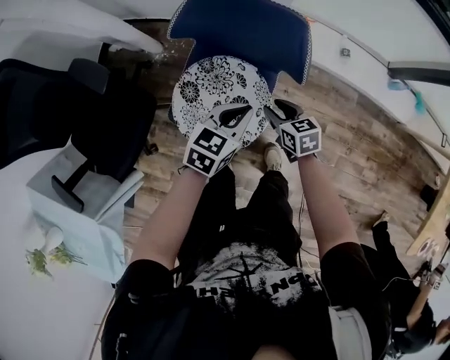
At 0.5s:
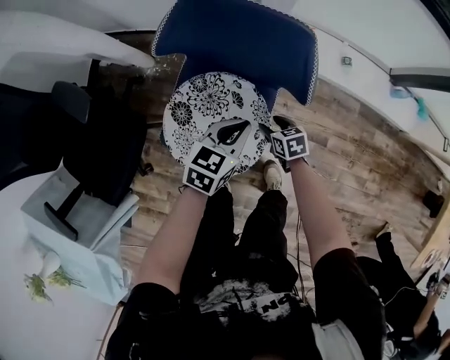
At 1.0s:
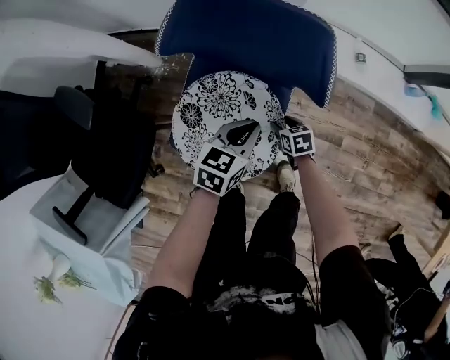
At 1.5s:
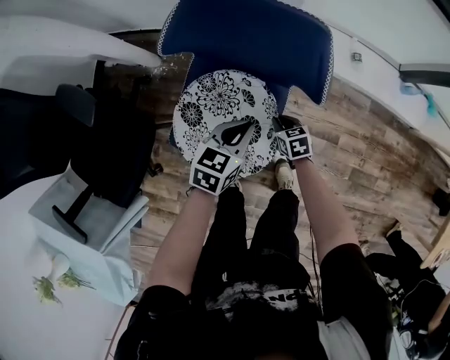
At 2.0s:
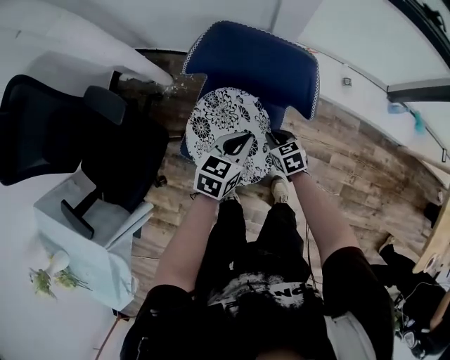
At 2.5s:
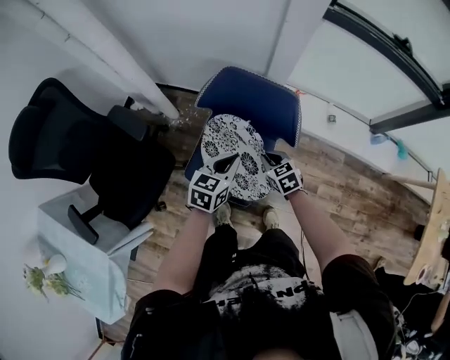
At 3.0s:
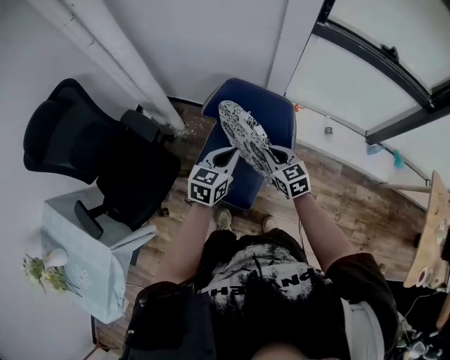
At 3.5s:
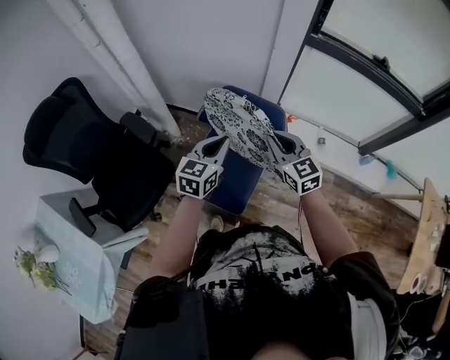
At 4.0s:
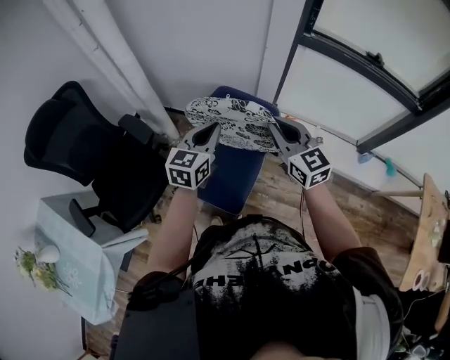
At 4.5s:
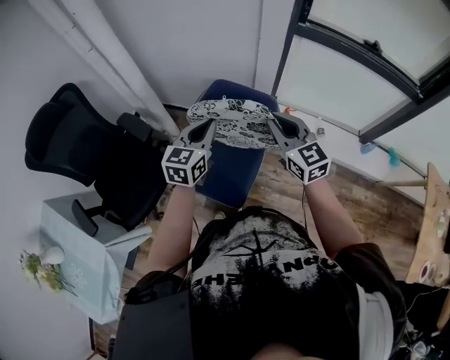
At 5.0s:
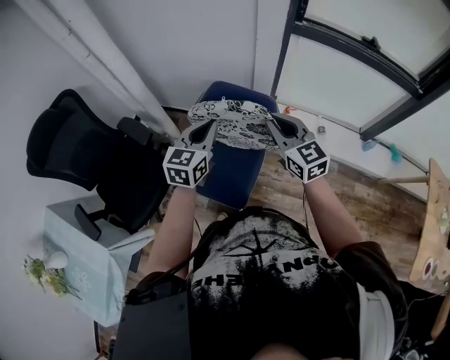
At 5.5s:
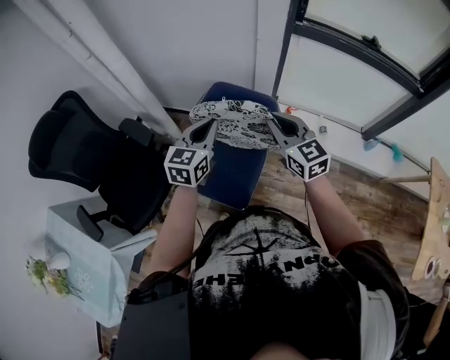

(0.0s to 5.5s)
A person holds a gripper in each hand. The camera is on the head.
0.0s - 2.0s: The left gripper reaches some 10 cm downward, then returns. The right gripper moves some 20 cm downward and comes back, and closes its fingers.
2.0s - 3.5s: The left gripper shifts roughly 20 cm upward, and changes its angle by roughly 20 degrees. Meanwhile the right gripper heads upward, covering approximately 40 cm, and points its fingers about 40 degrees further upward.
3.5s - 5.5s: The right gripper shifts roughly 5 cm upward.

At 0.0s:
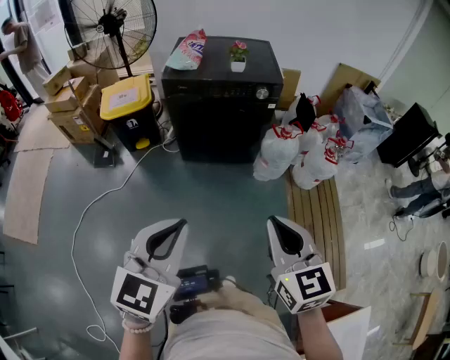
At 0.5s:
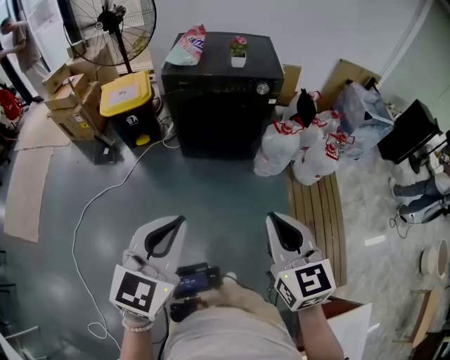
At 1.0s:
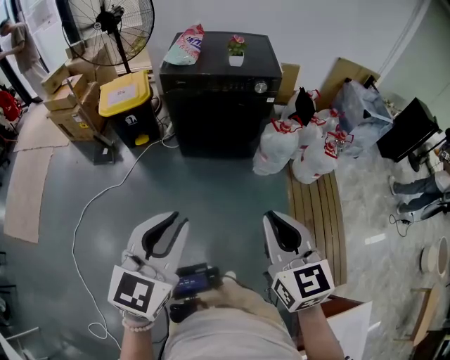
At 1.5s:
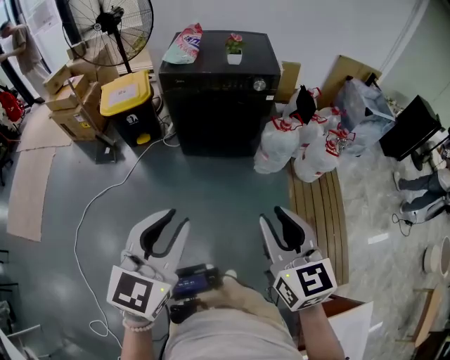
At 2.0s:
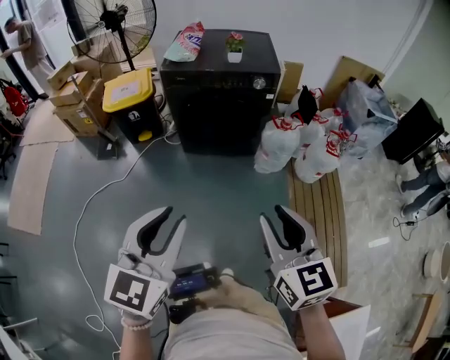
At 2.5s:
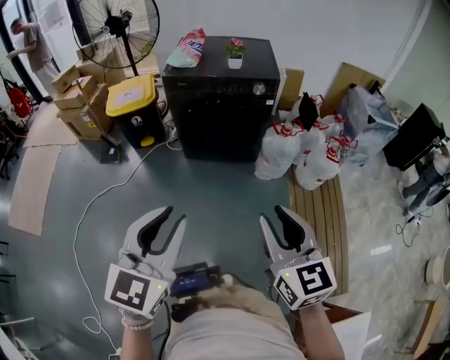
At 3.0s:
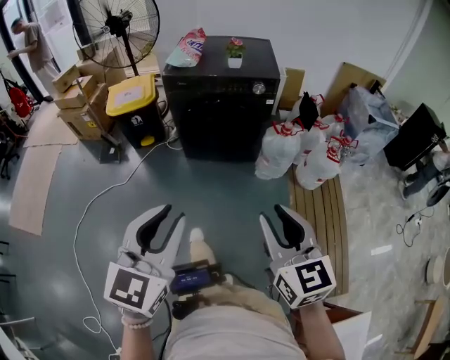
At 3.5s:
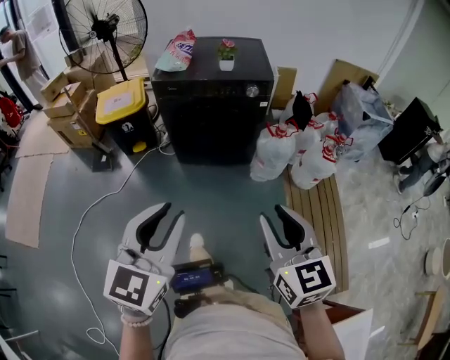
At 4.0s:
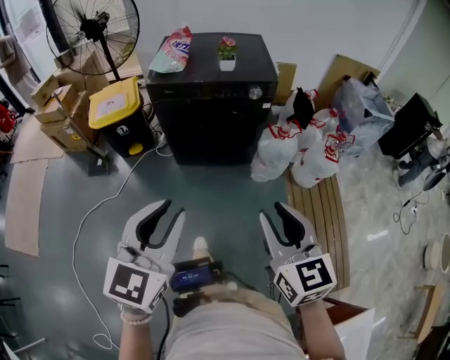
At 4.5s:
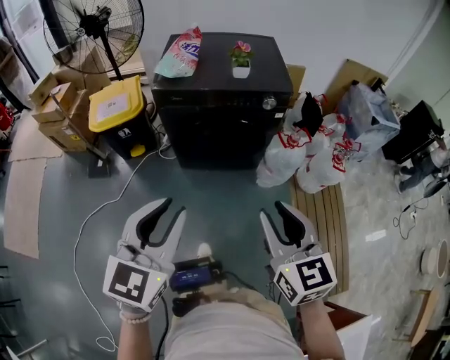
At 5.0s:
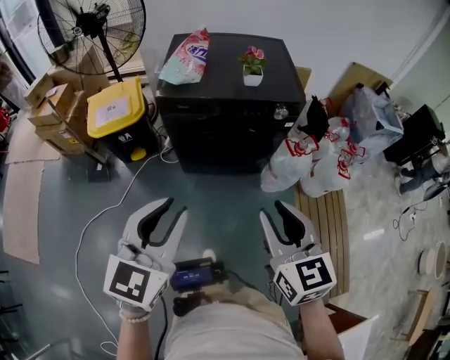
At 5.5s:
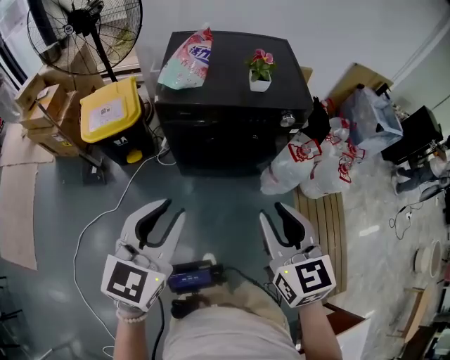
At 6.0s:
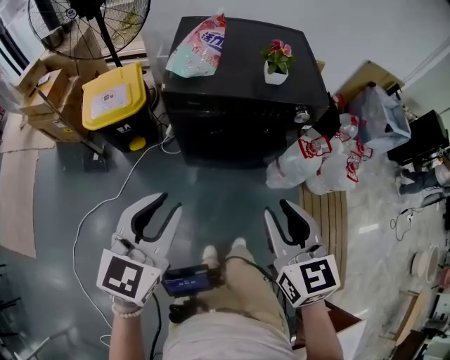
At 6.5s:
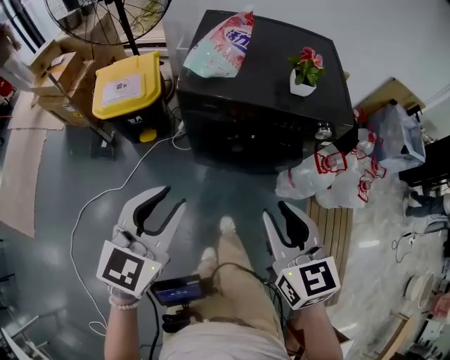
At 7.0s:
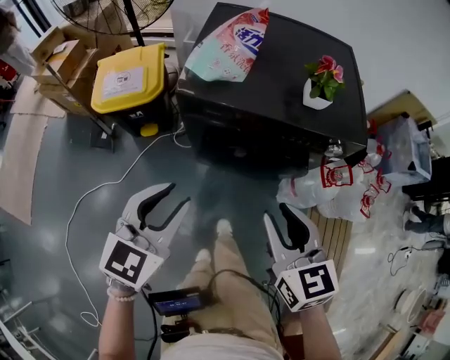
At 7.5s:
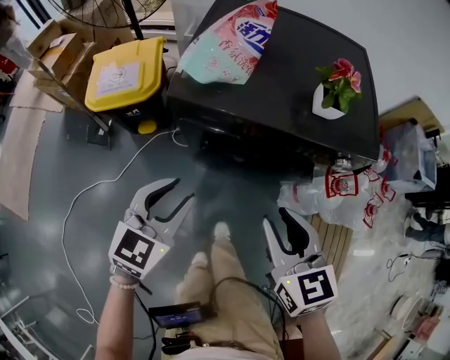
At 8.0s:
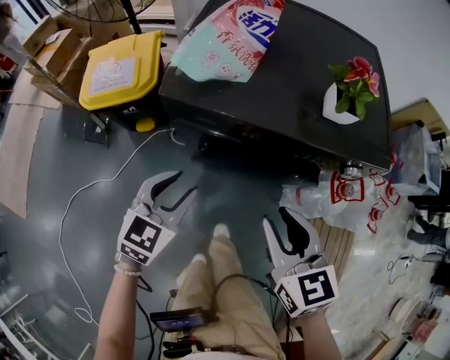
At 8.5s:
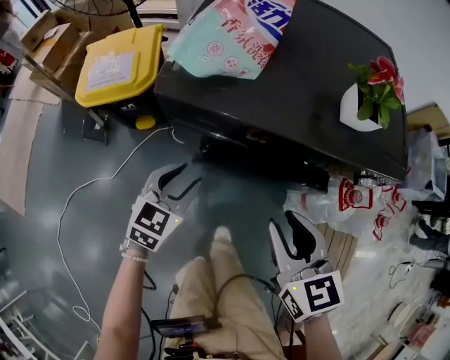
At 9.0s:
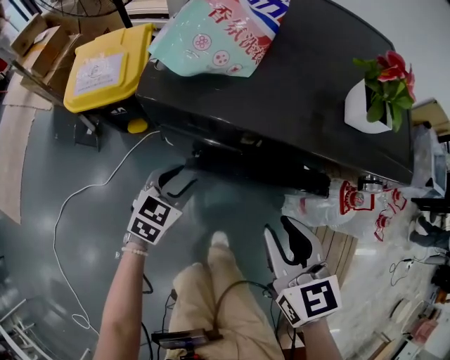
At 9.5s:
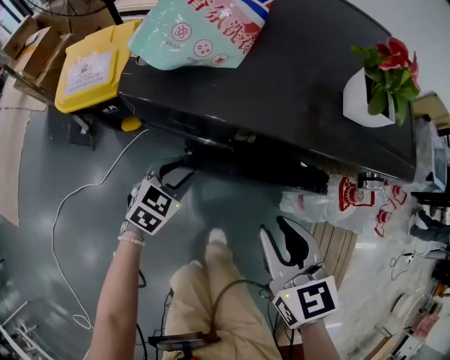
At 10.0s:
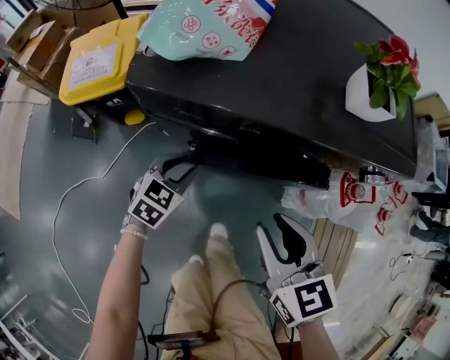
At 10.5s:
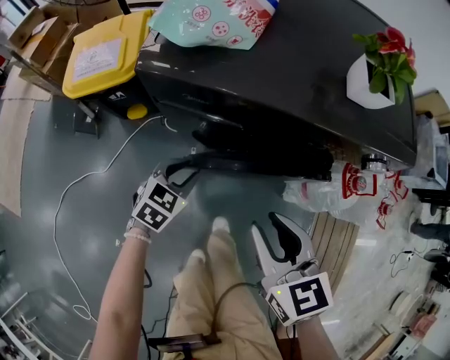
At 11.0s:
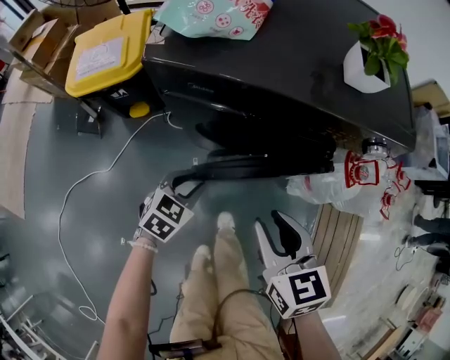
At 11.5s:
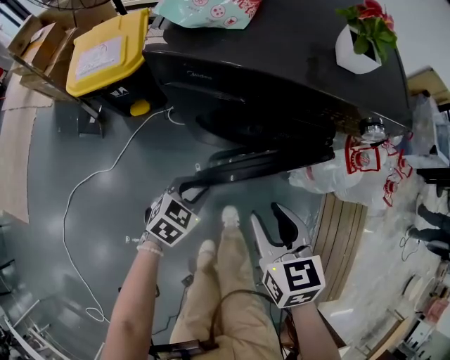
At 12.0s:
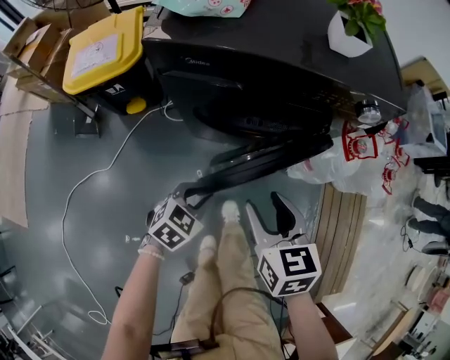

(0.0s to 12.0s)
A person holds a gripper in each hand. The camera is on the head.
0.0s - 2.0s: The left gripper opens. Meanwhile the right gripper opens.
2.0s - 4.0s: The grippers both shift forward by roughly 10 cm.
4.0s - 6.0s: Both grippers move forward and to the left, approximately 25 cm.
6.0s - 8.0s: The right gripper heads forward and downward, covering roughly 25 cm, while the left gripper is displaced downward and forward by approximately 30 cm.
8.0s - 10.0s: The left gripper goes approximately 20 cm downward. Meanwhile the right gripper goes approximately 10 cm downward.
10.0s - 12.0s: The right gripper shifts roughly 10 cm backward, and opens its fingers. Meanwhile the left gripper travels backward by approximately 20 cm.

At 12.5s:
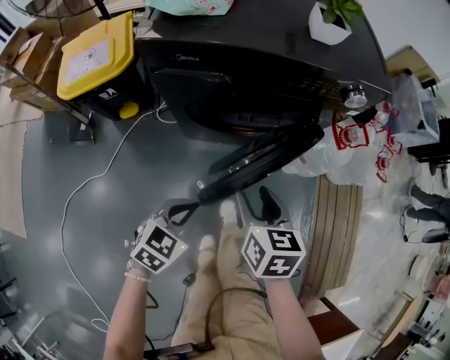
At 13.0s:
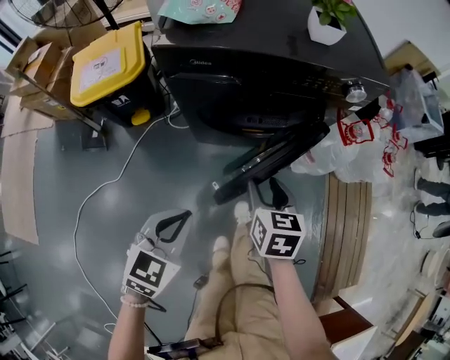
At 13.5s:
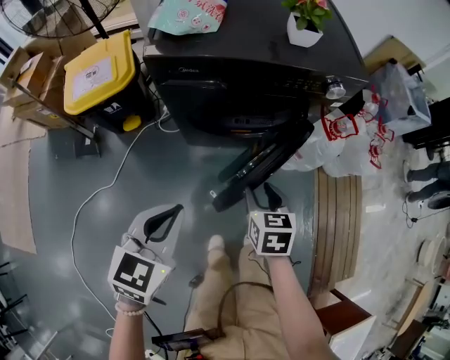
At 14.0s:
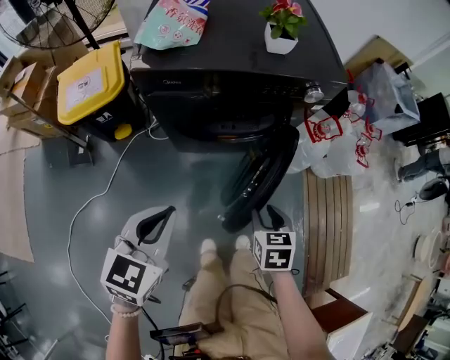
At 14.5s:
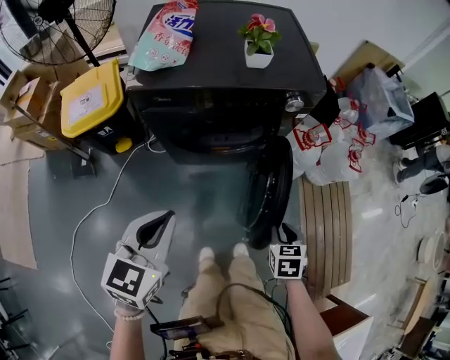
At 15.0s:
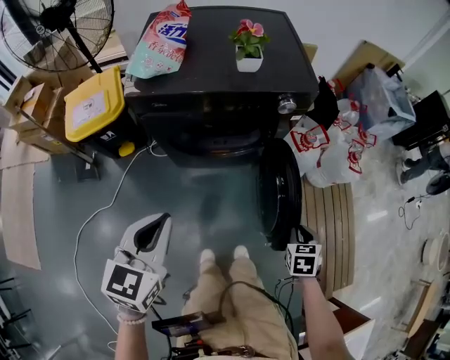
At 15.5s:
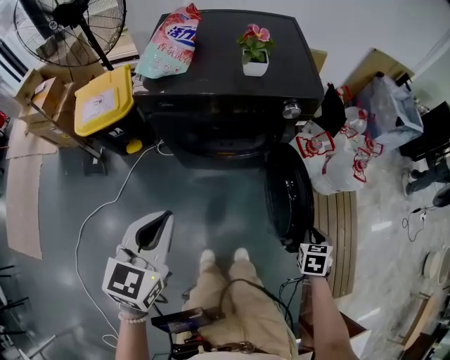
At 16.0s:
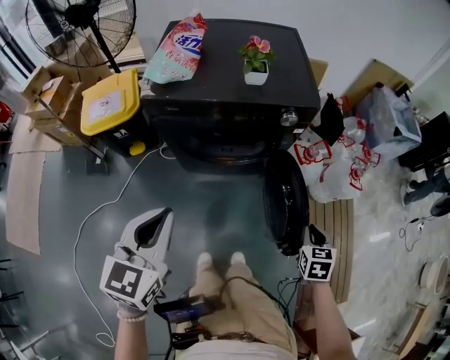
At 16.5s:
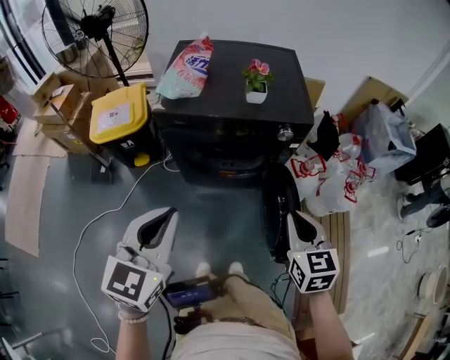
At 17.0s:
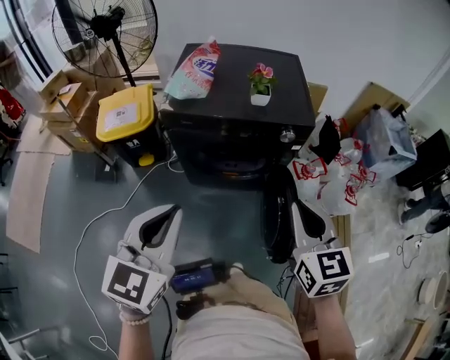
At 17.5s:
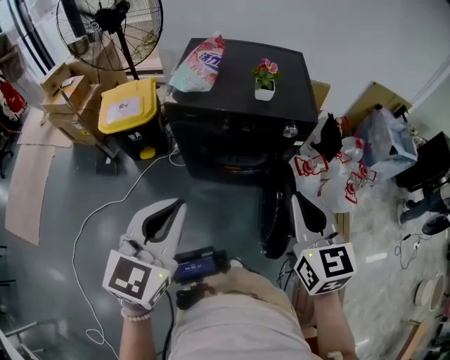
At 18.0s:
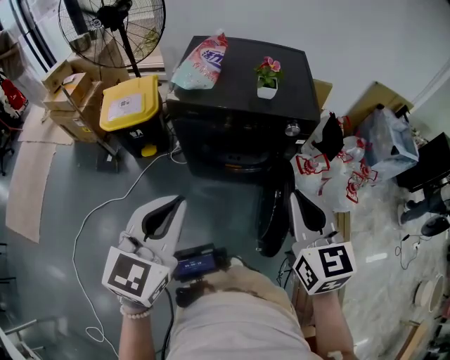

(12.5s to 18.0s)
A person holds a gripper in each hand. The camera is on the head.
12.5s - 14.5s: The left gripper goes about 25 cm upward, and rotates about 20 degrees. The right gripper travels to the right by some 20 cm, turns by approximately 30 degrees, and closes.
14.5s - 16.0s: The right gripper is displaced to the right, upward and forward by some 15 cm, while the left gripper shifts approximately 10 cm upward.
16.0s - 18.0s: The right gripper moves upward and to the left, about 35 cm, and tilts its fingers about 30 degrees upward; the left gripper heads upward, covering about 10 cm.

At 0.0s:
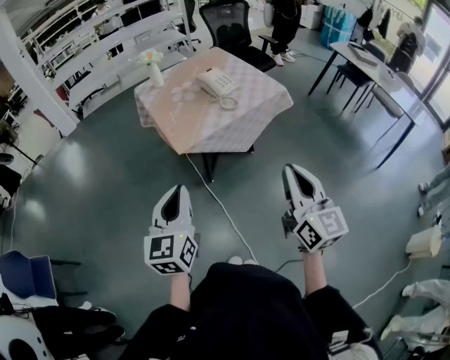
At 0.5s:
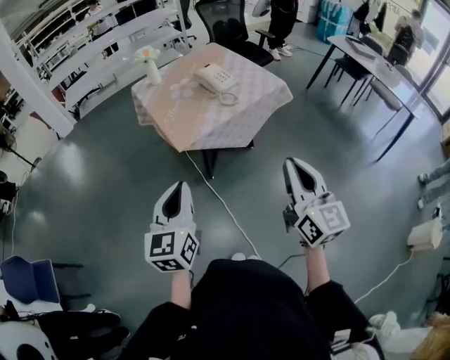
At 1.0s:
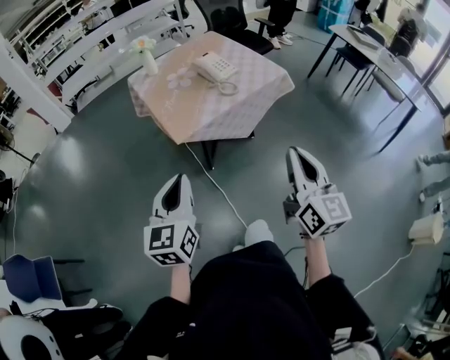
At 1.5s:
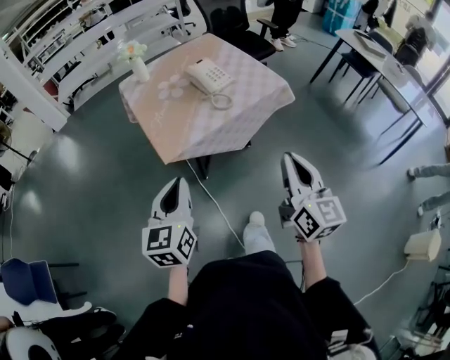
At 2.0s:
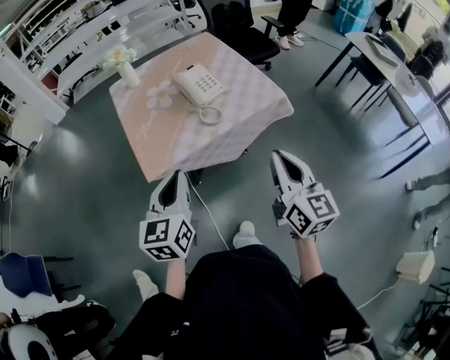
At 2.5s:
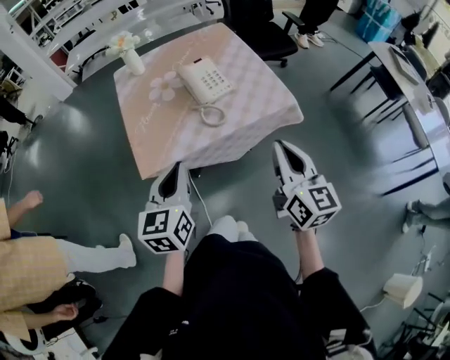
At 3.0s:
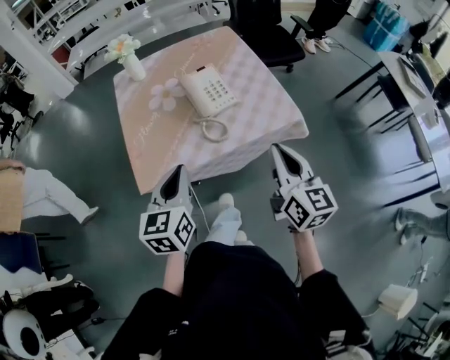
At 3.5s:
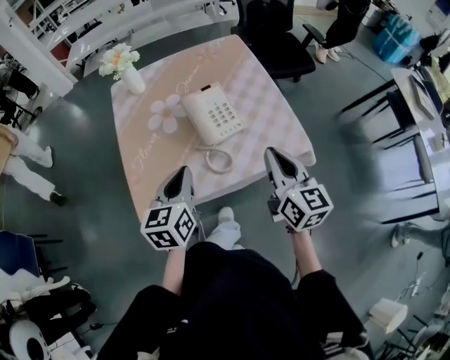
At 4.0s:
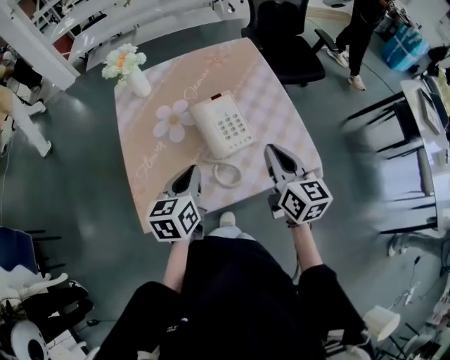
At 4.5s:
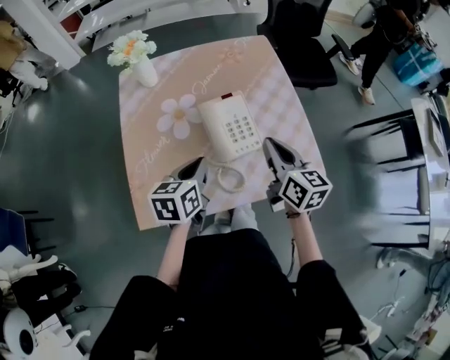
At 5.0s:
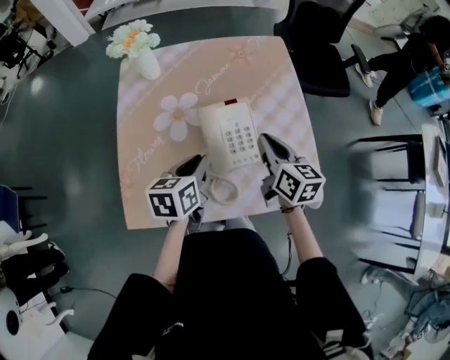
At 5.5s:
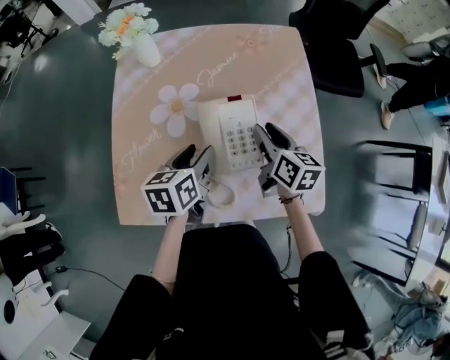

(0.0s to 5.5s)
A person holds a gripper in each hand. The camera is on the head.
0.0s - 2.0s: Both grippers move forward and to the right, about 25 cm.
2.0s - 3.5s: Both grippers travel together forward, approximately 25 cm.
3.5s - 5.5s: Both grippers move forward and downward, approximately 25 cm. The left gripper swivels approximately 30 degrees, and opens; the right gripper turns by about 30 degrees, and opens its fingers.
